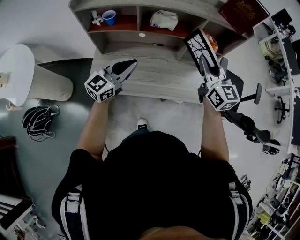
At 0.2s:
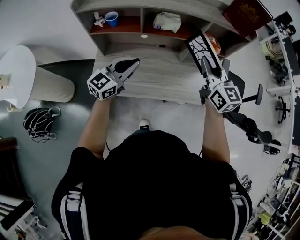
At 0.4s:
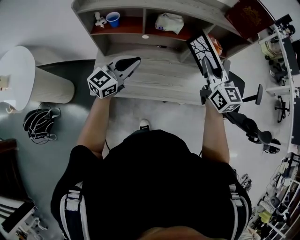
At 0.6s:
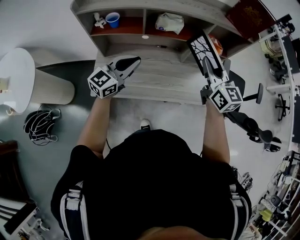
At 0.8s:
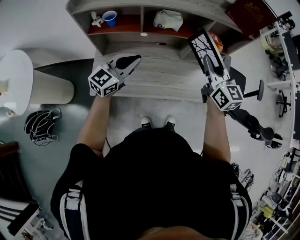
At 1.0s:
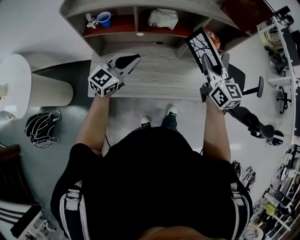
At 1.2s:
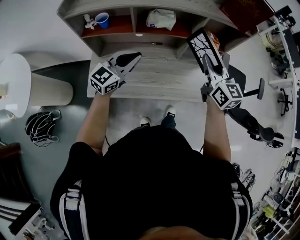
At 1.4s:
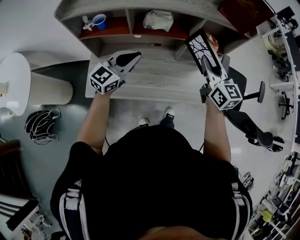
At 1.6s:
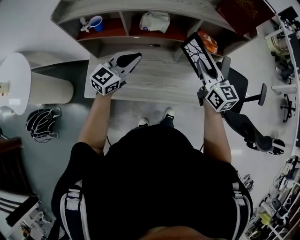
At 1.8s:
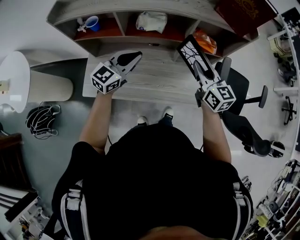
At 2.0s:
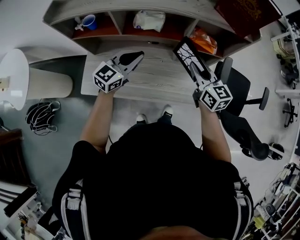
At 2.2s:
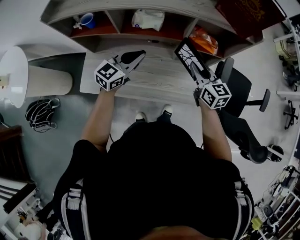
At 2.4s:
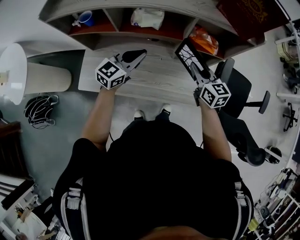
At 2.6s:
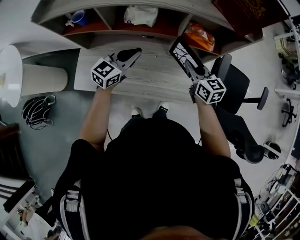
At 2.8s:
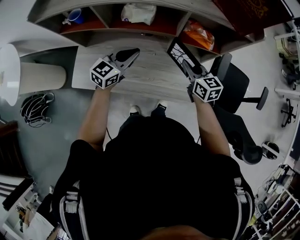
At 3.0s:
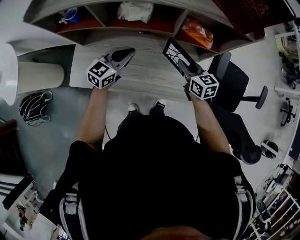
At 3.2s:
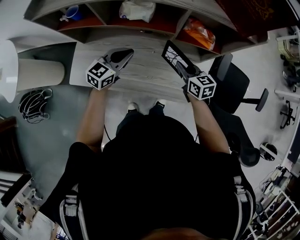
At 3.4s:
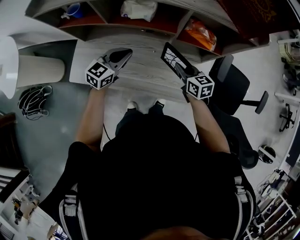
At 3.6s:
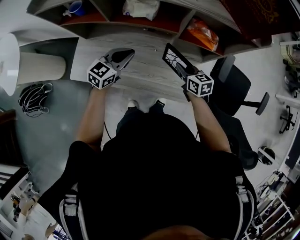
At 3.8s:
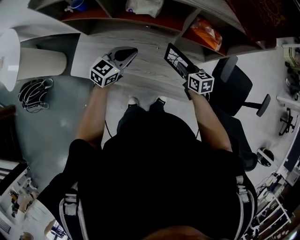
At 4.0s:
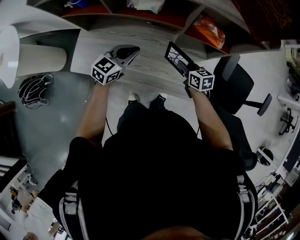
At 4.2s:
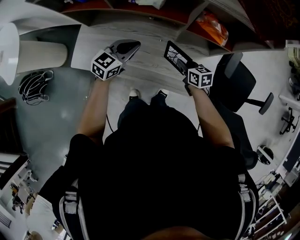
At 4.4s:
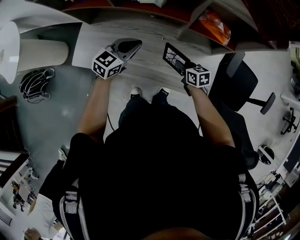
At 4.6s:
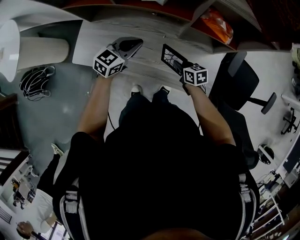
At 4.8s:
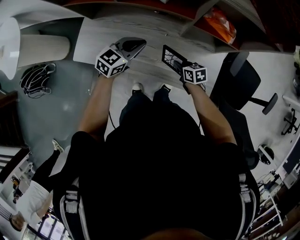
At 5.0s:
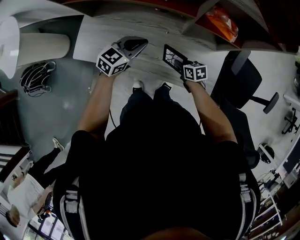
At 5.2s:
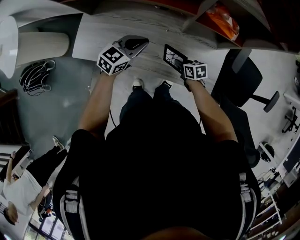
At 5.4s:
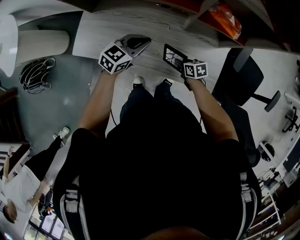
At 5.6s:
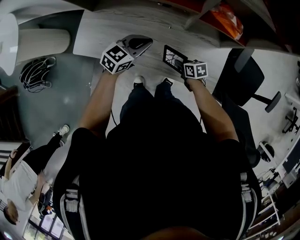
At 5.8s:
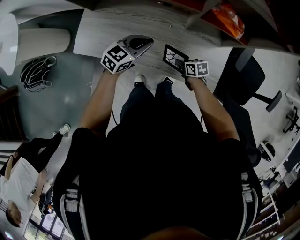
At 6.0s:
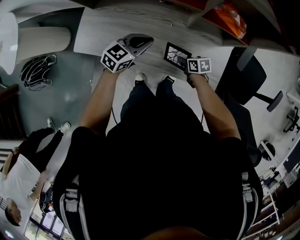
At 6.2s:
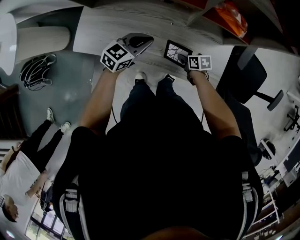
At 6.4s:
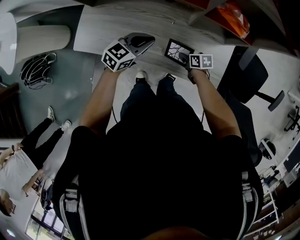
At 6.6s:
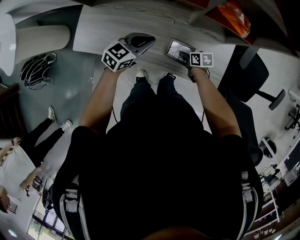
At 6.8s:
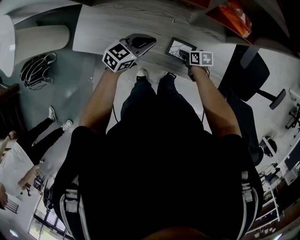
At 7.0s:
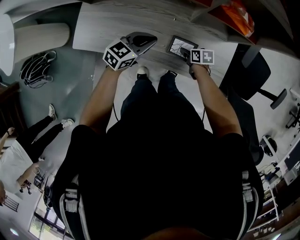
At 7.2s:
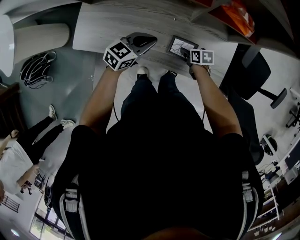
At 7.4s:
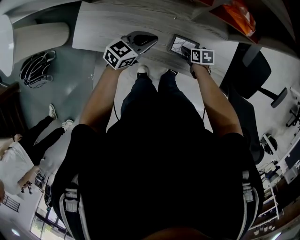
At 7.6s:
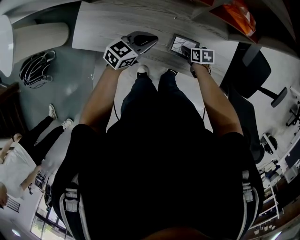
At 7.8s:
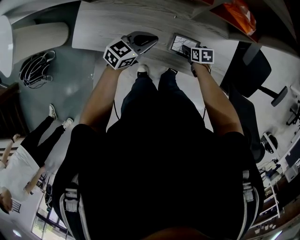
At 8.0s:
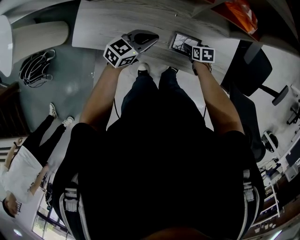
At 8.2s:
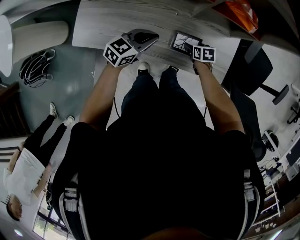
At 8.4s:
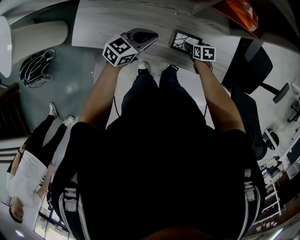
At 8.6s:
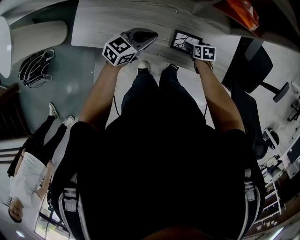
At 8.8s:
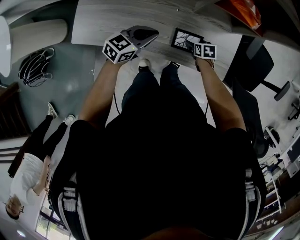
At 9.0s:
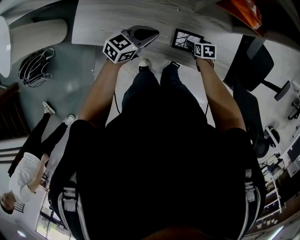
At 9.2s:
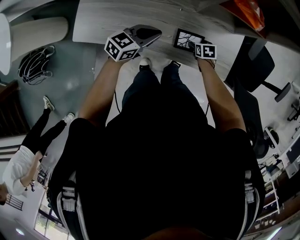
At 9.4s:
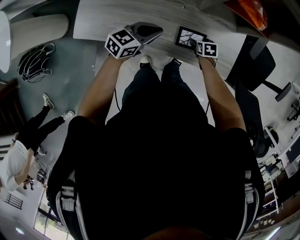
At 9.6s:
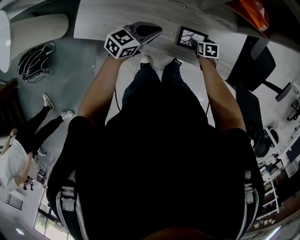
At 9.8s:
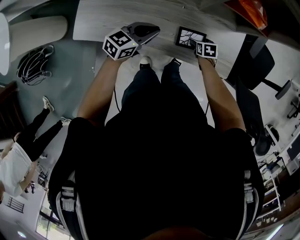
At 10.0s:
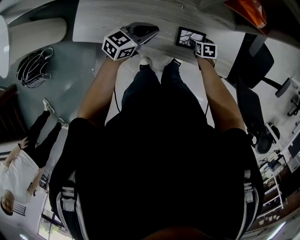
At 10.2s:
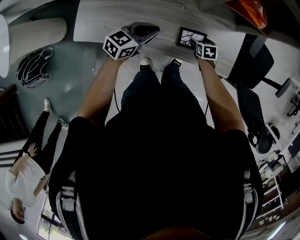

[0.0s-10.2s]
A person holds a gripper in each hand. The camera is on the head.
0.0s to 1.4s: The left gripper travels forward by some 10 cm, while the right gripper moves forward, about 5 cm.
1.4s to 3.0s: The right gripper goes approximately 20 cm downward, and changes its angle by roughly 30 degrees, while the left gripper shifts about 15 cm downward, to the right and forward.
3.0s to 4.4s: The right gripper goes roughly 15 cm downward, and changes its angle by roughly 20 degrees; the left gripper heads downward, covering about 5 cm.
4.4s to 5.8s: The left gripper changes place by about 5 cm. Meanwhile the right gripper shifts about 10 cm downward.
5.8s to 7.2s: The right gripper ends up approximately 5 cm from where it was, and opens its fingers.
7.2s to 8.8s: The right gripper opens.
8.8s to 10.2s: The grippers make only small movements.

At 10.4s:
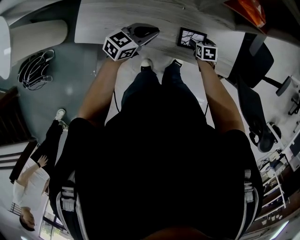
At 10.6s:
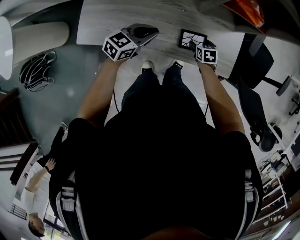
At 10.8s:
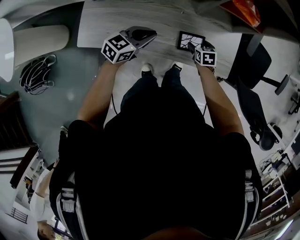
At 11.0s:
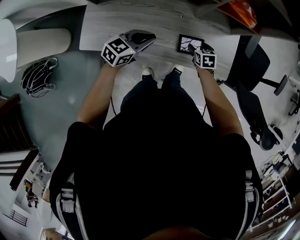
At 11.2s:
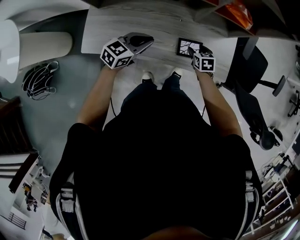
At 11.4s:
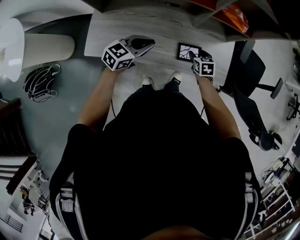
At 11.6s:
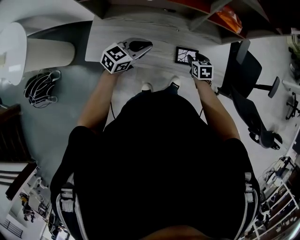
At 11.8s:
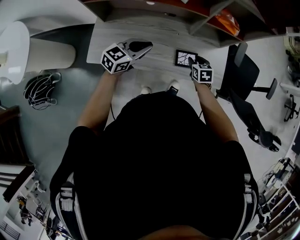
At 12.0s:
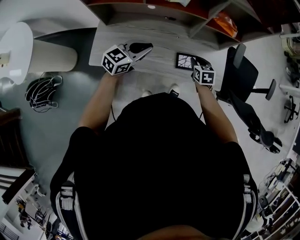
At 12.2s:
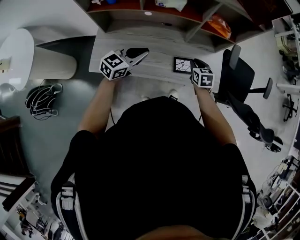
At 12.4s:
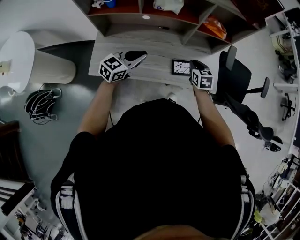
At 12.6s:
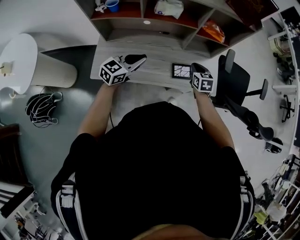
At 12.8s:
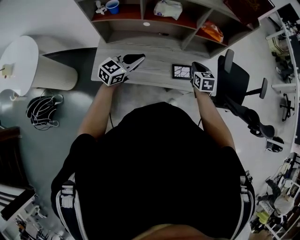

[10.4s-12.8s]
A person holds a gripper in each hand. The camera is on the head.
10.4s to 11.6s: The two grippers go roughly 10 cm upward. The right gripper closes up.
11.6s to 12.8s: The left gripper shifts approximately 10 cm upward. Meanwhile the right gripper shifts some 15 cm upward, and closes up.

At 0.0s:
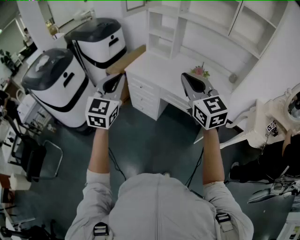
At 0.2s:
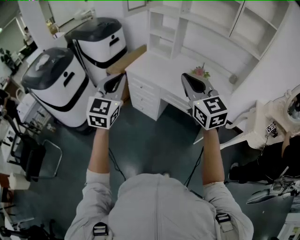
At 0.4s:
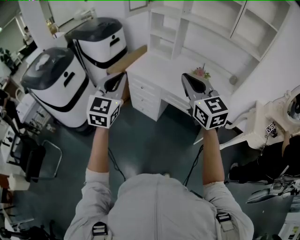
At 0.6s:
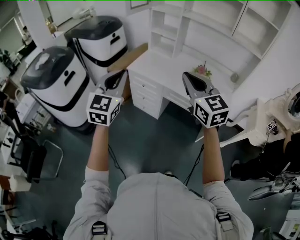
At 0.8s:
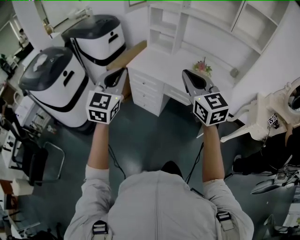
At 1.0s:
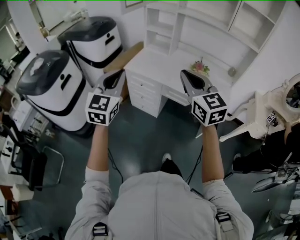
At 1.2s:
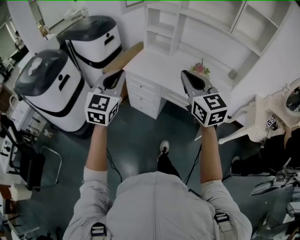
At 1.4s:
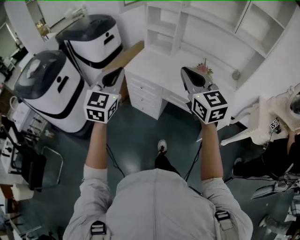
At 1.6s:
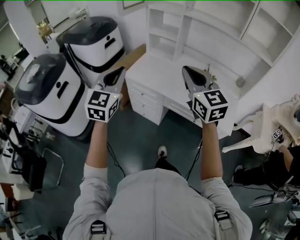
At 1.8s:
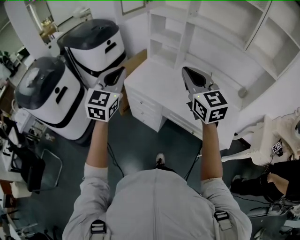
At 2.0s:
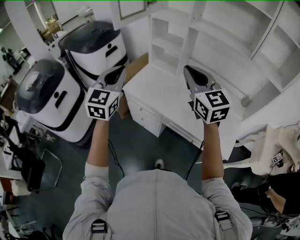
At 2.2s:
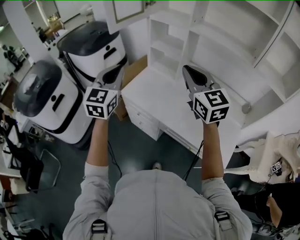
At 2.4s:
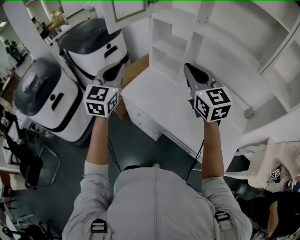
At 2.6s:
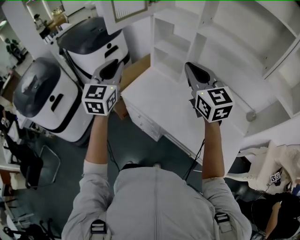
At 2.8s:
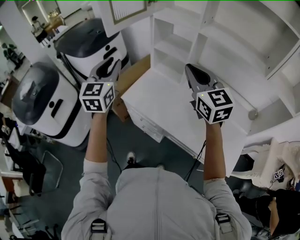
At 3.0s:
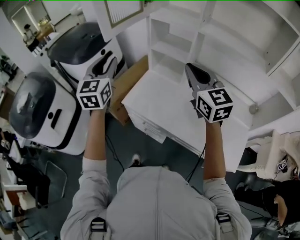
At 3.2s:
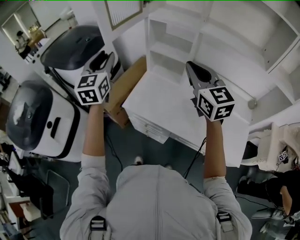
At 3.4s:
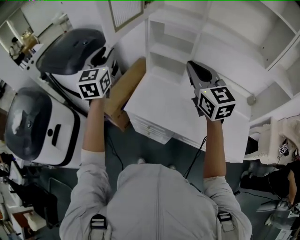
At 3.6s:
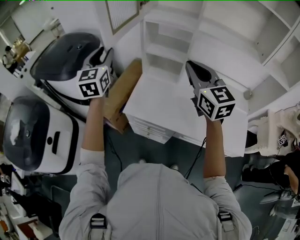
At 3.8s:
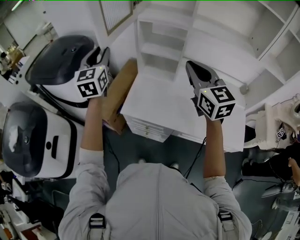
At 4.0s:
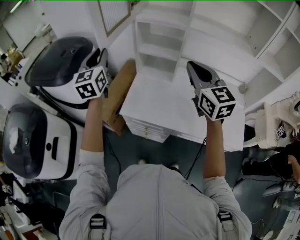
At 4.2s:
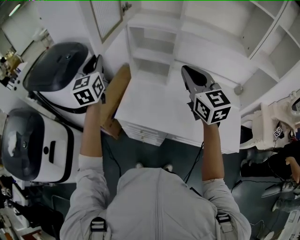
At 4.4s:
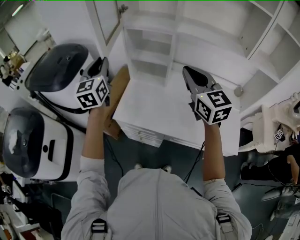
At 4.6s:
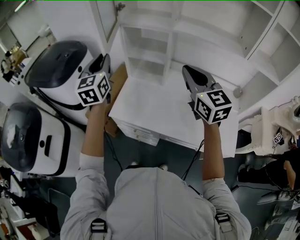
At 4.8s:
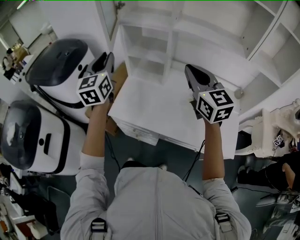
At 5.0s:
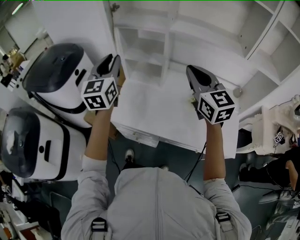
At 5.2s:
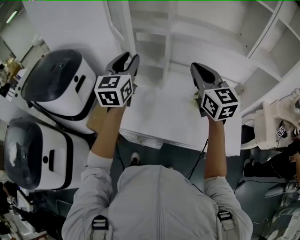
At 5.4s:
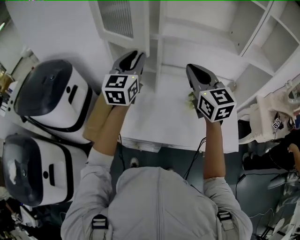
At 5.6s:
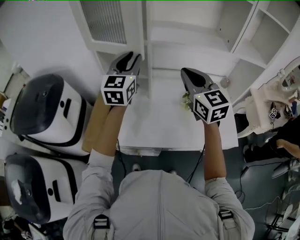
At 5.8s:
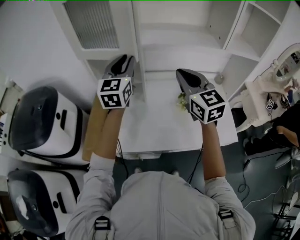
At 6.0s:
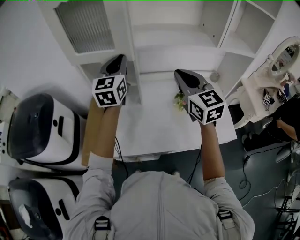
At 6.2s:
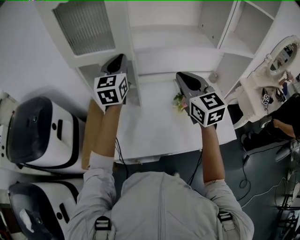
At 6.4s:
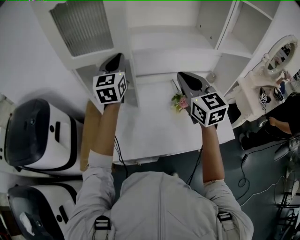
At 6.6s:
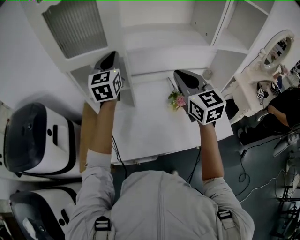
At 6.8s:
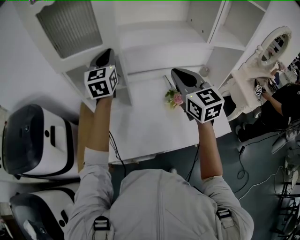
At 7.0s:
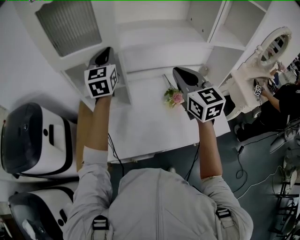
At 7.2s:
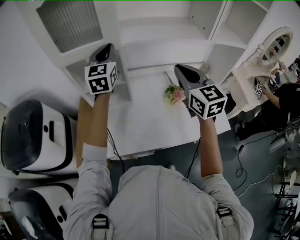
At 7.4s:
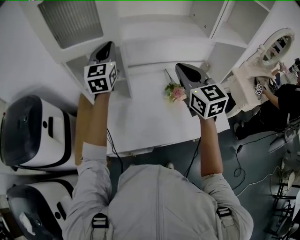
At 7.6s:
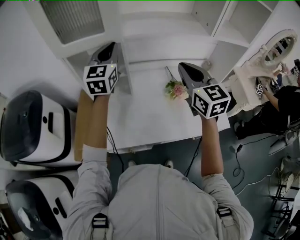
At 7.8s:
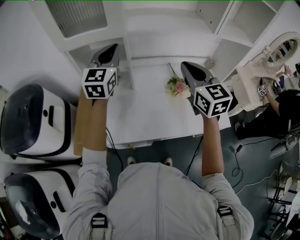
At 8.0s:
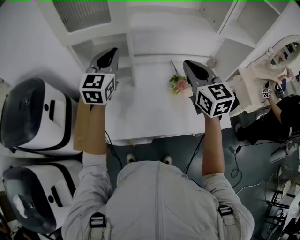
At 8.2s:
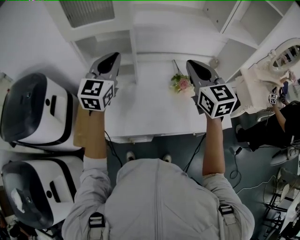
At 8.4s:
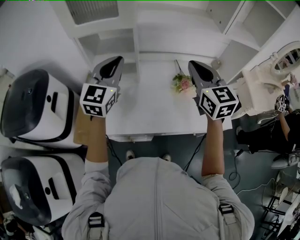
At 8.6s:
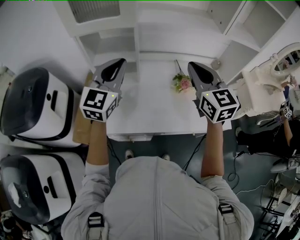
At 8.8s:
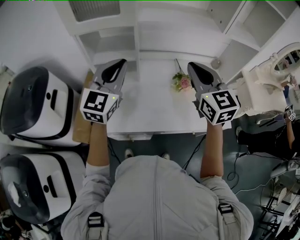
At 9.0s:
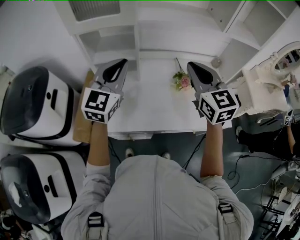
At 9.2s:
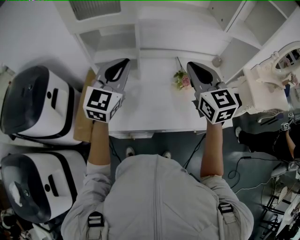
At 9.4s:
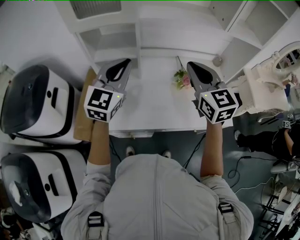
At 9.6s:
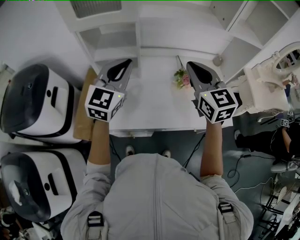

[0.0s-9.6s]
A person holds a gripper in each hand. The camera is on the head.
0.0s to 1.6s: The grippers both shift forward by some 15 cm.
1.6s to 3.2s: The grippers both shift forward by some 35 cm. The left gripper opens up.
3.2s to 4.8s: Both grippers travel together to the right, roughly 10 cm.
4.8s to 6.4s: The left gripper ends up some 25 cm from where it was, and rotates approximately 30 degrees. The right gripper shifts by some 10 cm, and turns by approximately 20 degrees.
6.4s to 8.0s: The left gripper heads backward, covering some 5 cm.
8.0s to 9.6s: The left gripper travels backward by roughly 10 cm.

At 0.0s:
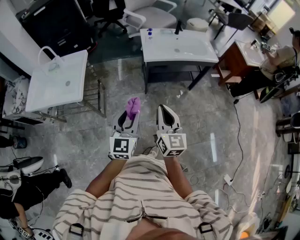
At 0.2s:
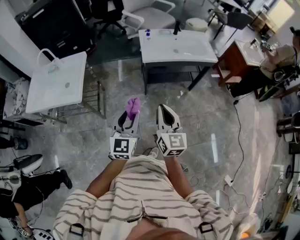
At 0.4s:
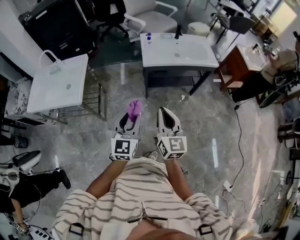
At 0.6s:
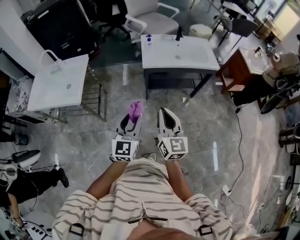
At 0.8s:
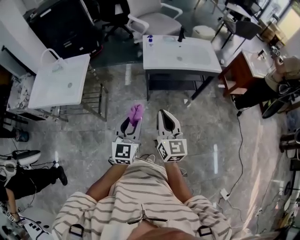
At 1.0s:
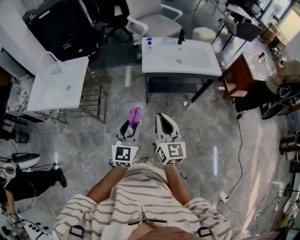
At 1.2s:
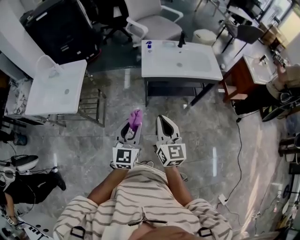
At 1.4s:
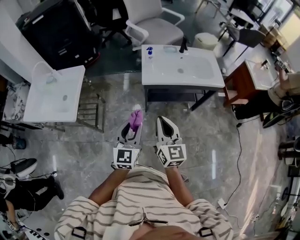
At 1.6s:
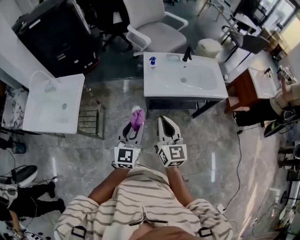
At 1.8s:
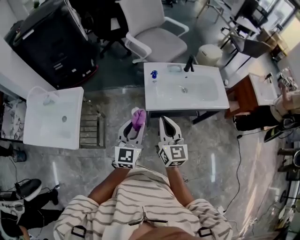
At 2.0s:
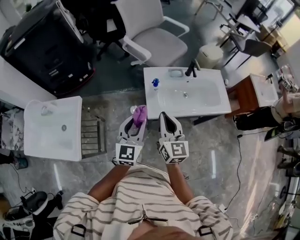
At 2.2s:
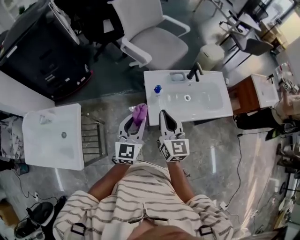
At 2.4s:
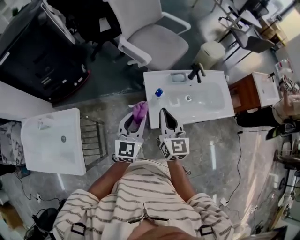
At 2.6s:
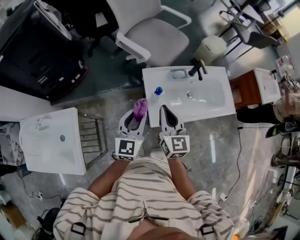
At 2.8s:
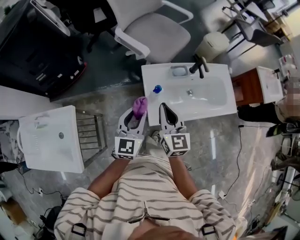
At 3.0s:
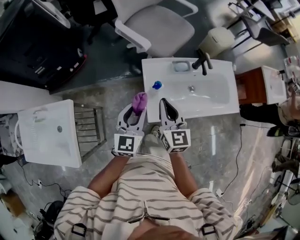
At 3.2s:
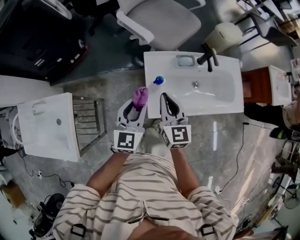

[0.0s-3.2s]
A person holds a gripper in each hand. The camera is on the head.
0.0s to 1.6s: Both grippers move forward, some 25 cm.
1.6s to 3.2s: Both grippers move forward, roughly 35 cm.
